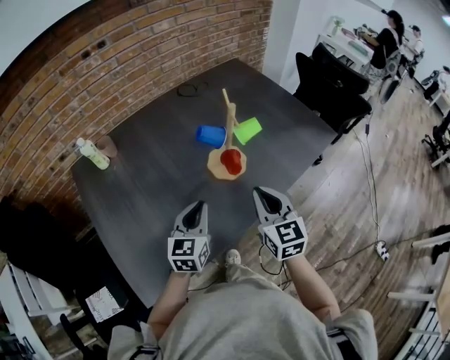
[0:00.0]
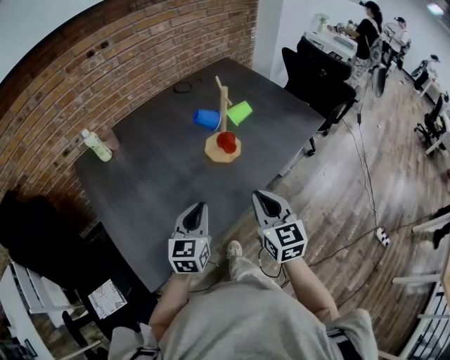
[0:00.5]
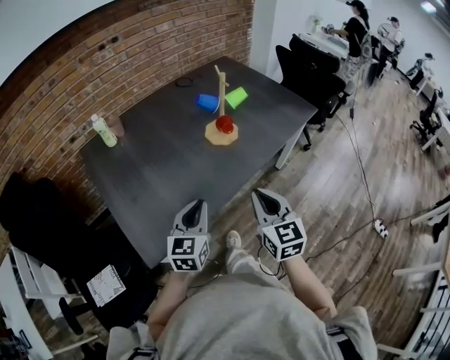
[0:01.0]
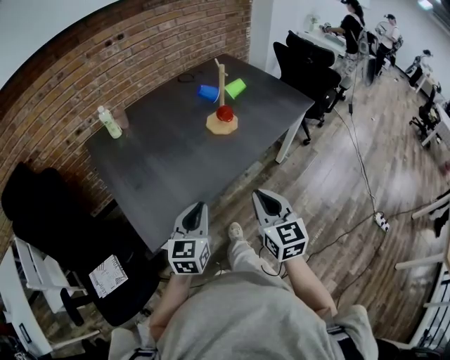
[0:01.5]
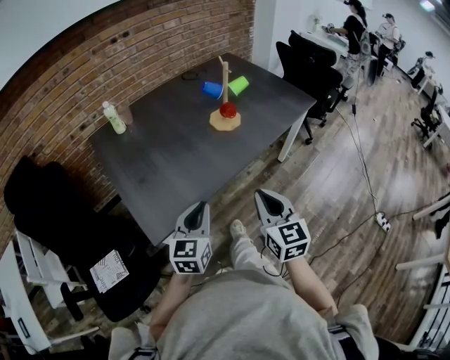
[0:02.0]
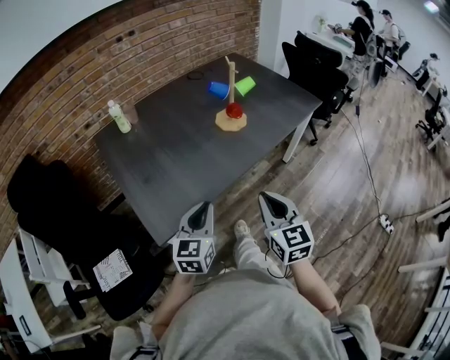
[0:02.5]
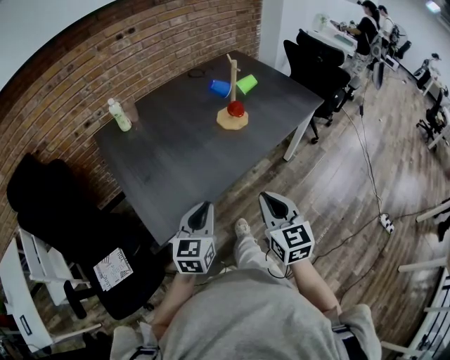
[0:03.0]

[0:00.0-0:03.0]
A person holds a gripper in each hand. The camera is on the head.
0:00.0 to 0:01.5: Both grippers move backward, approximately 30 cm.
0:01.5 to 0:03.0: There are only small adjustments of the grippers.

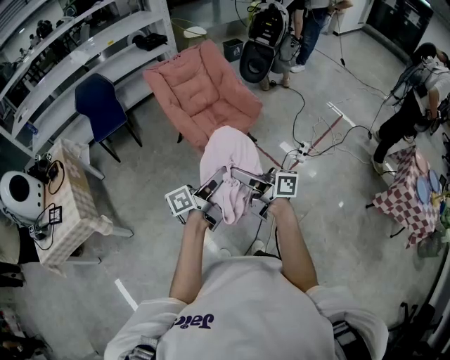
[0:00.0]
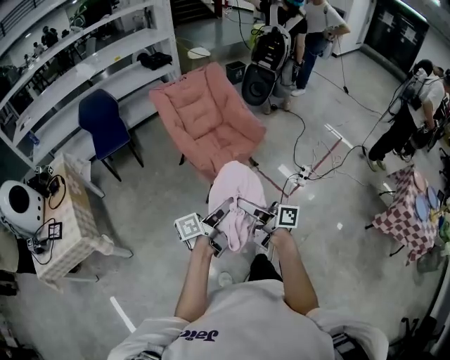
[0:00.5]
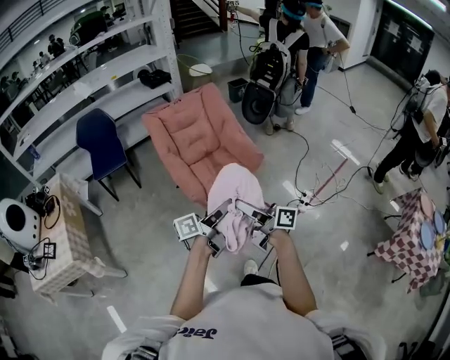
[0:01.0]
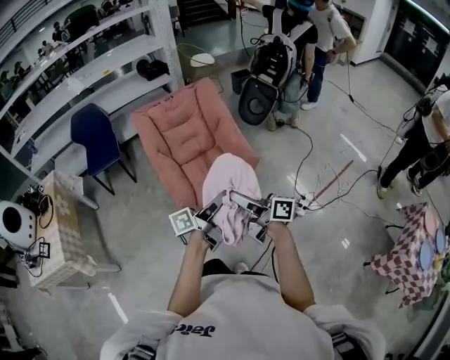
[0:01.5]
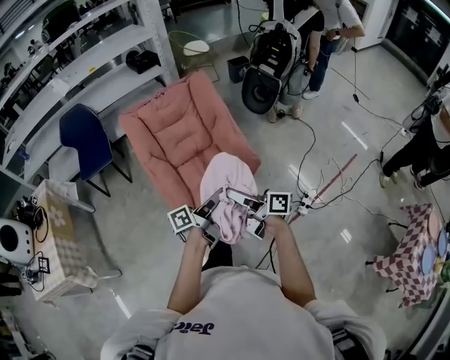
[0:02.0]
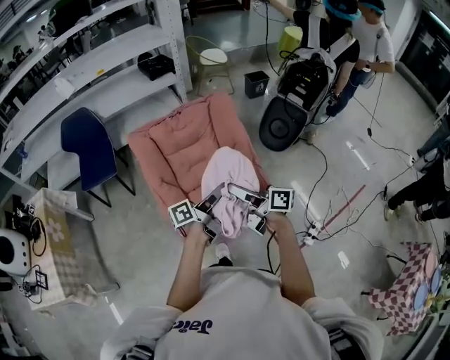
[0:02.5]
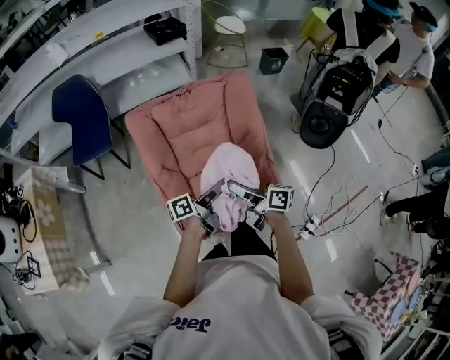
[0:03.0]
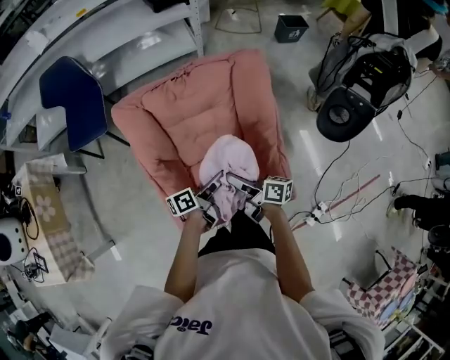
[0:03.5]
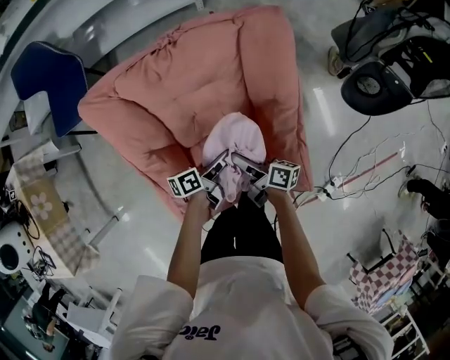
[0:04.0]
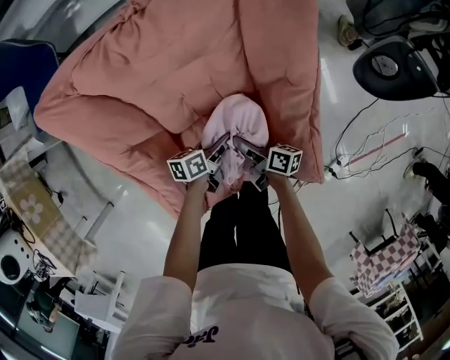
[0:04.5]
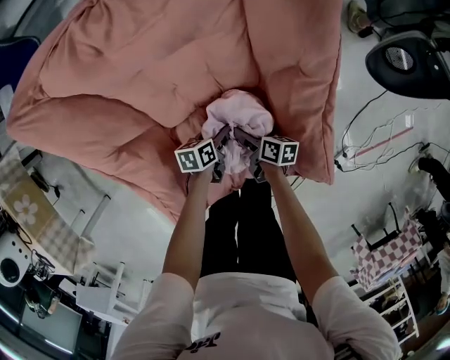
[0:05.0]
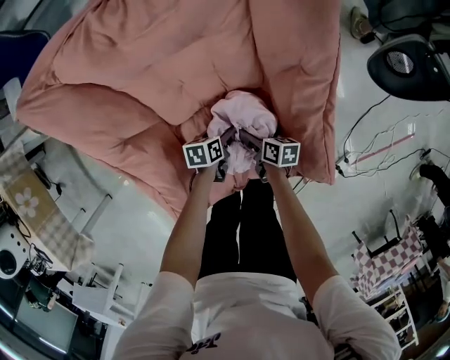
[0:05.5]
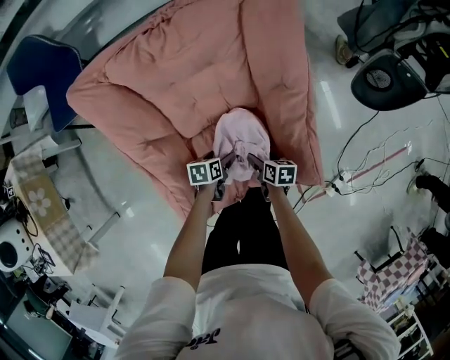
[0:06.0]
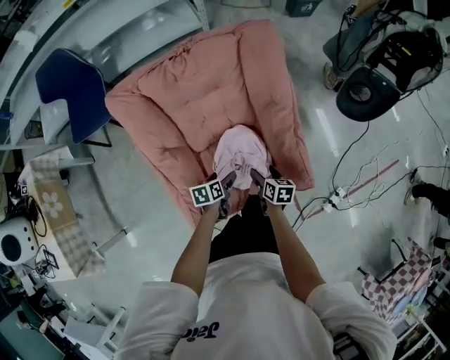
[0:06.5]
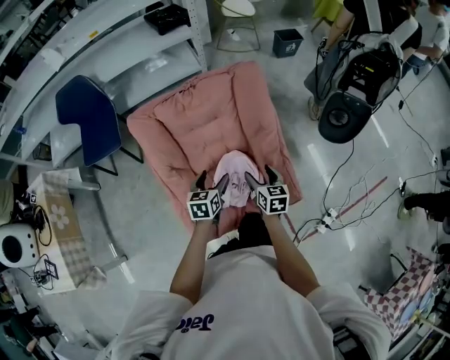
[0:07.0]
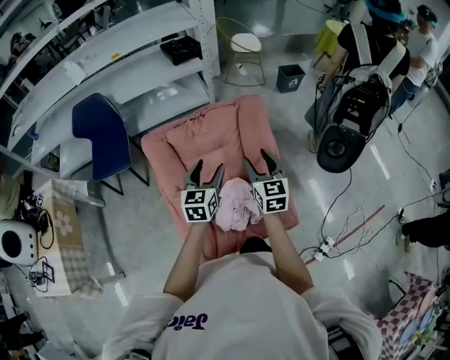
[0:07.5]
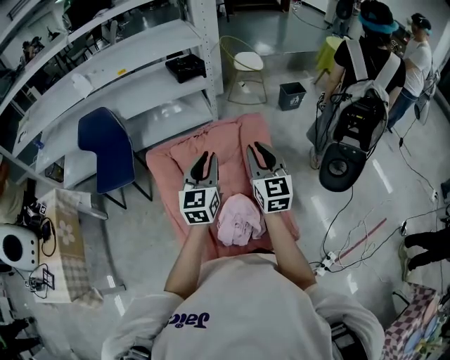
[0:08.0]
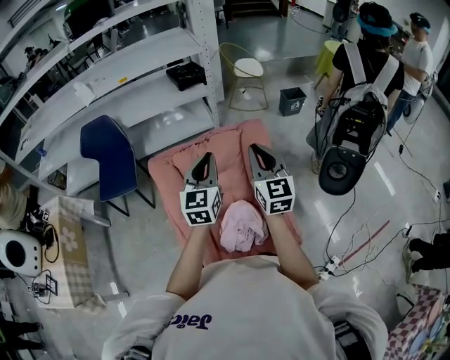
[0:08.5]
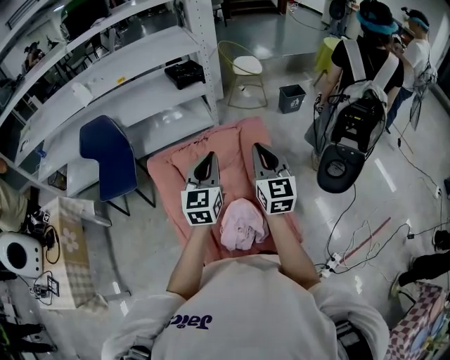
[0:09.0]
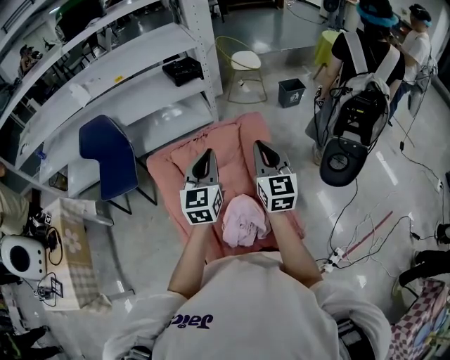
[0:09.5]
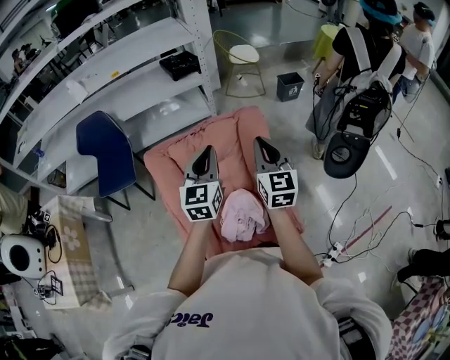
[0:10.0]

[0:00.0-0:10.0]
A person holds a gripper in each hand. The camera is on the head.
0:00.0 to 0:02.0: The two grippers travel together, forward and to the right, approximately 40 cm.
0:02.0 to 0:04.0: Both grippers are carried forward, roughly 40 cm. Both grippers move downward, about 35 cm. The left gripper turns by approximately 30 degrees, while the right gripper rotates some 30 degrees.
0:04.0 to 0:06.0: The grippers both shift downward and backward by approximately 20 cm. The left gripper tips its fingers downward by some 40 degrees, and opens up. Meanwhile the right gripper tips its fingers downward by approximately 40 degrees.
0:06.0 to 0:08.0: Both grippers move upward, roughly 60 cm. The left gripper tips its fingers upward by some 50 degrees, and closes its fingers, while the right gripper tilts its fingers approximately 50 degrees upward, and closes up.
0:08.0 to 0:10.0: There are only small adjustments of the grippers.

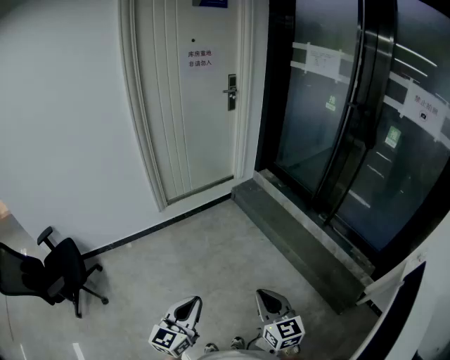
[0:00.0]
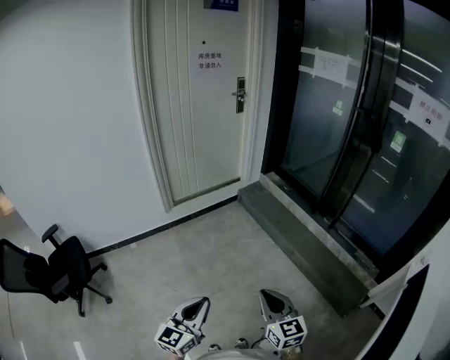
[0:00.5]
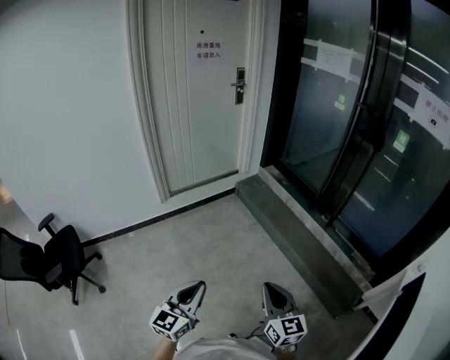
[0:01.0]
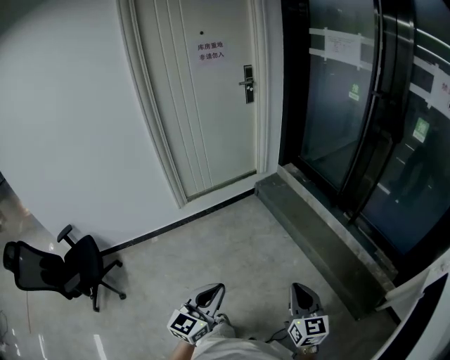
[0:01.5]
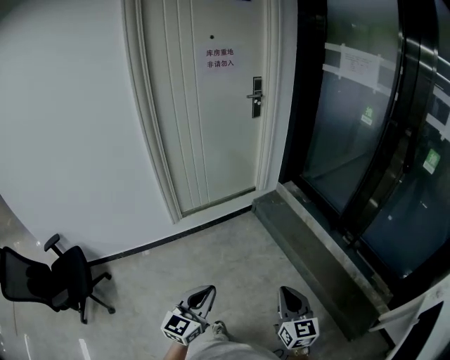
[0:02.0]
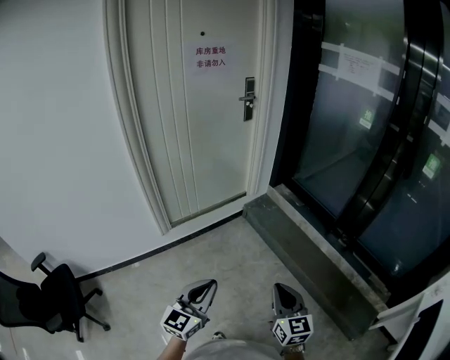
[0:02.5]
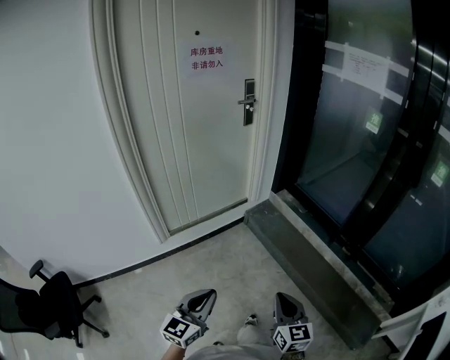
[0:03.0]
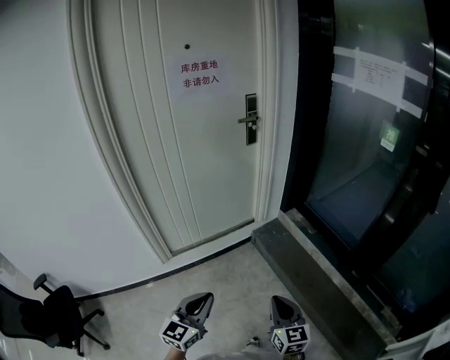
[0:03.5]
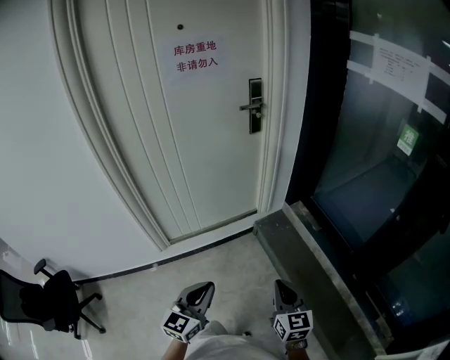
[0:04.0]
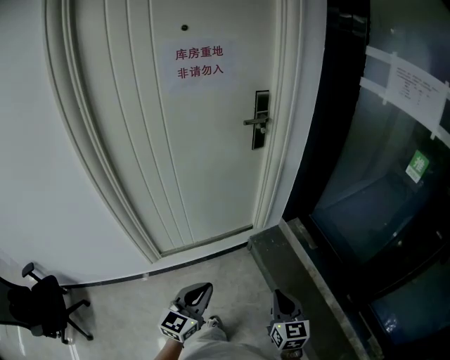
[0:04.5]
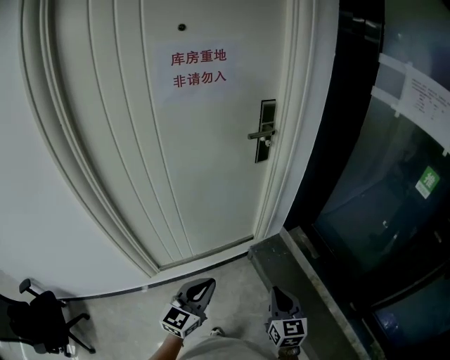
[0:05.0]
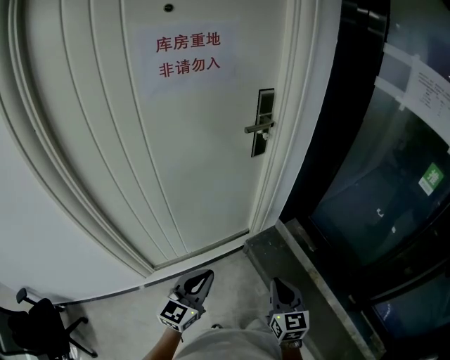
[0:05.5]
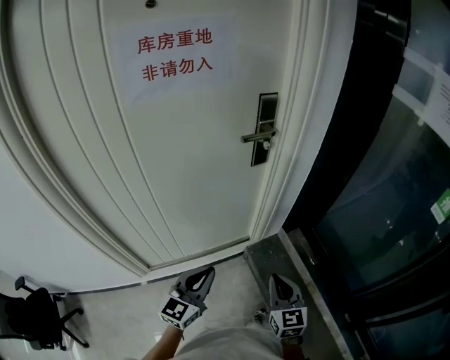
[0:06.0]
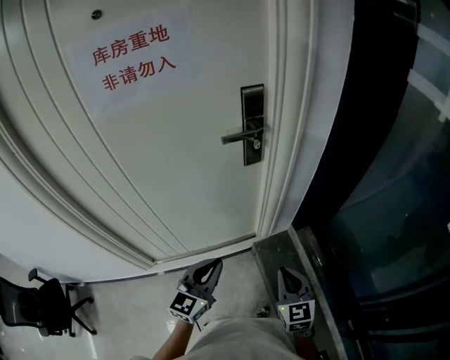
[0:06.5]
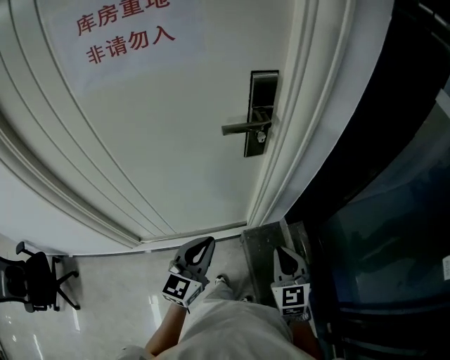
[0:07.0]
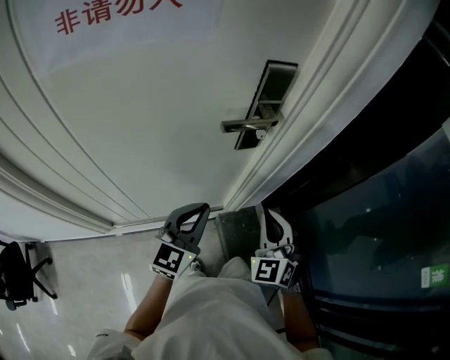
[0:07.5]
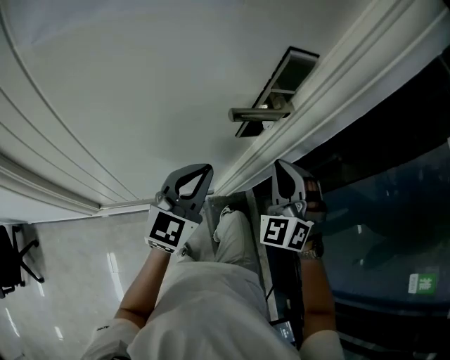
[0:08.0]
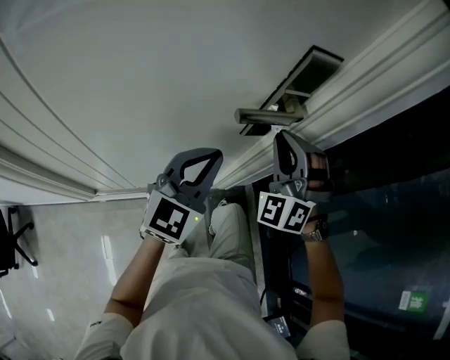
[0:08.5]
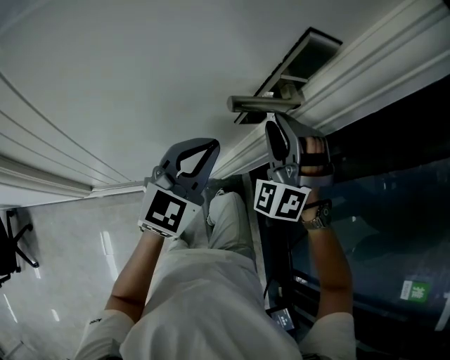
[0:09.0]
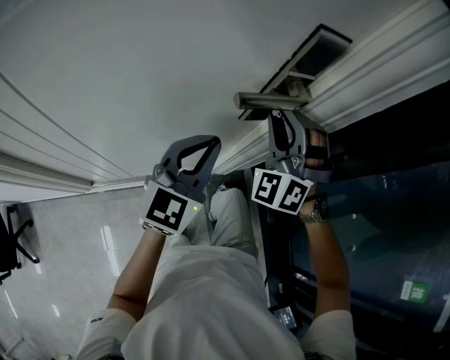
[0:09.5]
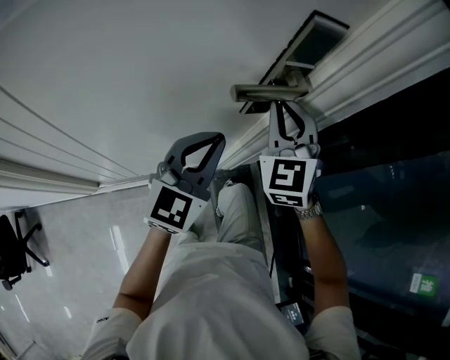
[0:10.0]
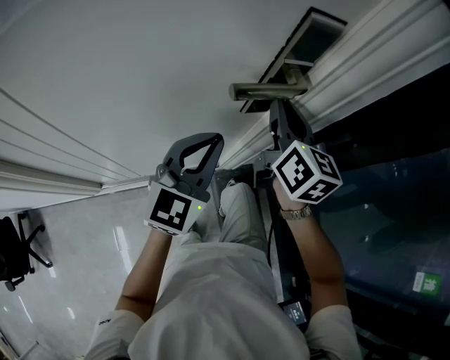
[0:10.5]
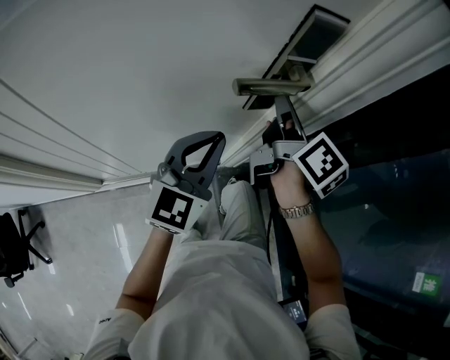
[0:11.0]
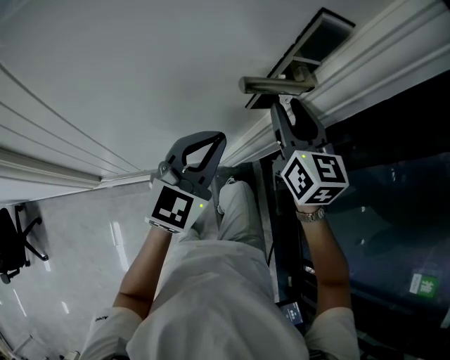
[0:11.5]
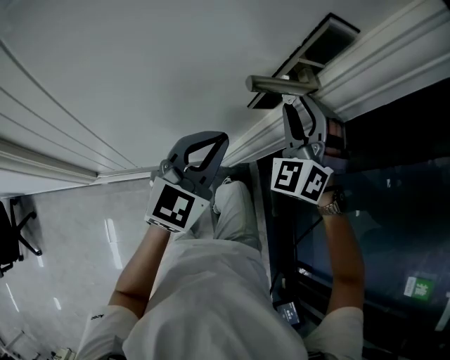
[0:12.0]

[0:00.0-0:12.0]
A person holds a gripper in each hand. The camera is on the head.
0:00.0 to 0:02.0: The grippers both shift forward by approximately 20 cm.
0:02.0 to 0:04.0: The two grippers travel together, forward, about 40 cm.
0:04.0 to 0:06.0: The grippers both shift forward by approximately 35 cm.
0:06.0 to 0:08.0: Both grippers move forward, some 35 cm. The right gripper rotates around the line of its fingers by approximately 70 degrees, counterclockwise from behind.
0:08.0 to 0:10.0: The right gripper shifts approximately 10 cm forward, rotates roughly 30 degrees, and opens, then closes again.
0:10.0 to 0:12.0: The right gripper changes its angle by some 40 degrees, and opens.

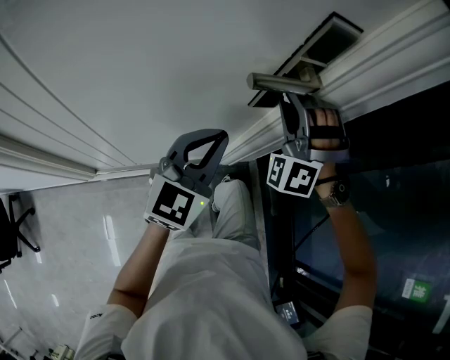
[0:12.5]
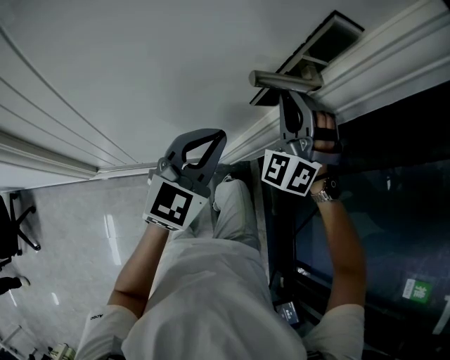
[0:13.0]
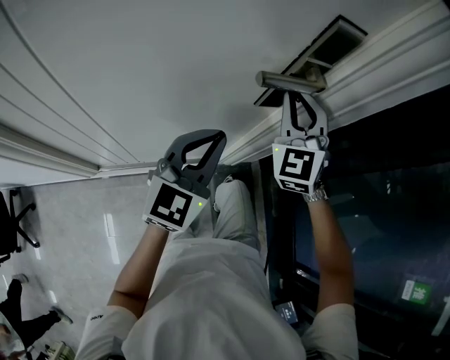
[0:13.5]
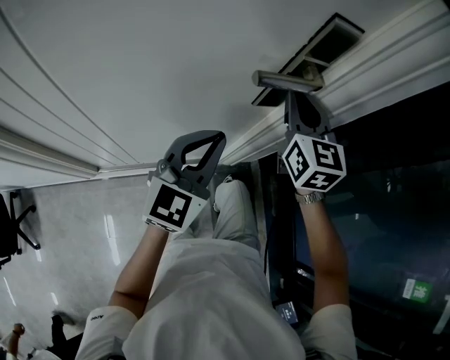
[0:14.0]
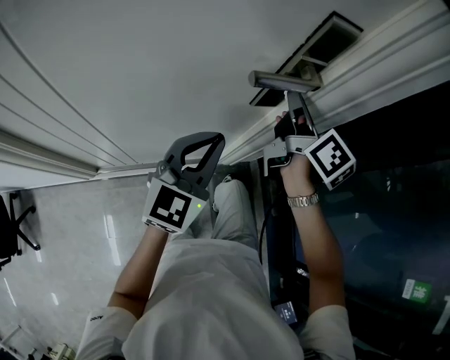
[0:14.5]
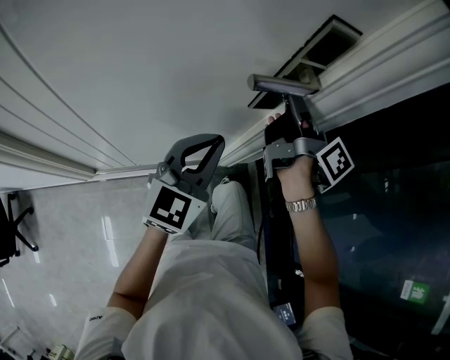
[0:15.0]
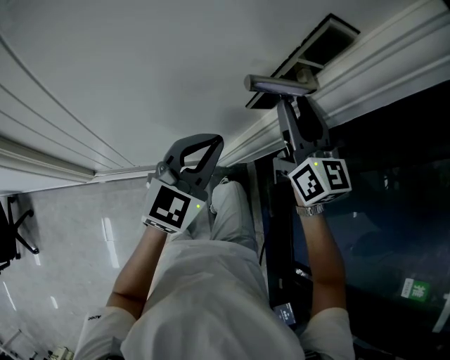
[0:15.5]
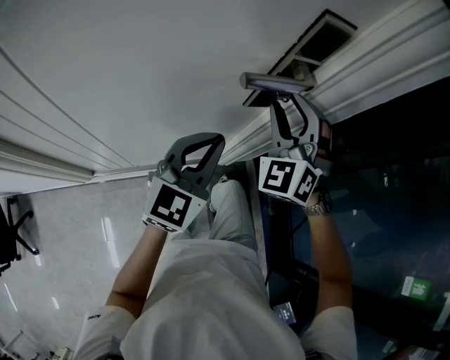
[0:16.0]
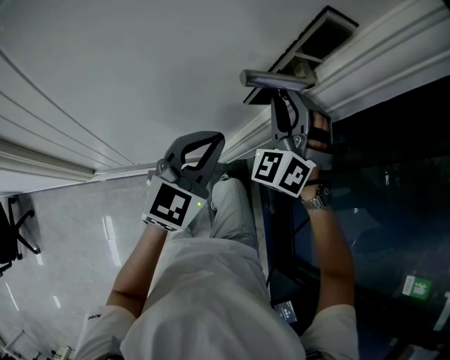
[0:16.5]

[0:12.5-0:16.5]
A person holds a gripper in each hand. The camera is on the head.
0:12.5 to 0:14.5: The right gripper rolls clockwise, seen from behind, by roughly 140 degrees, and closes its fingers.
0:14.5 to 0:16.5: The right gripper rotates around the line of its fingers by about 120 degrees, counterclockwise from behind, and opens its fingers.
